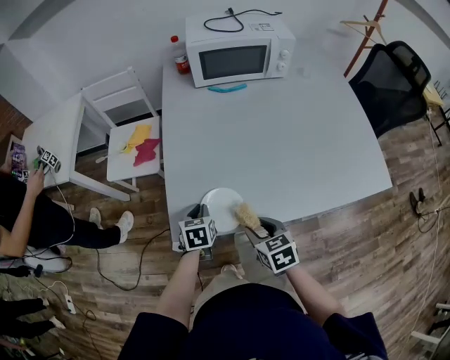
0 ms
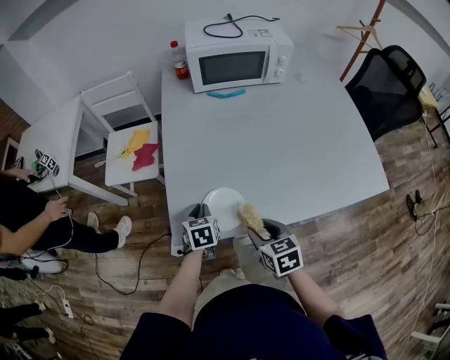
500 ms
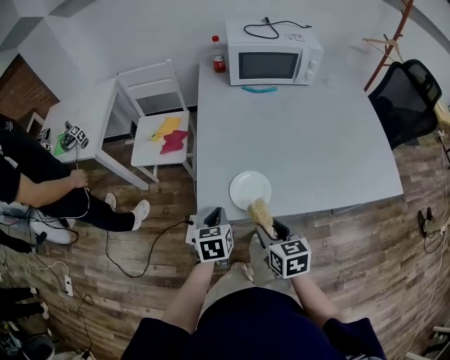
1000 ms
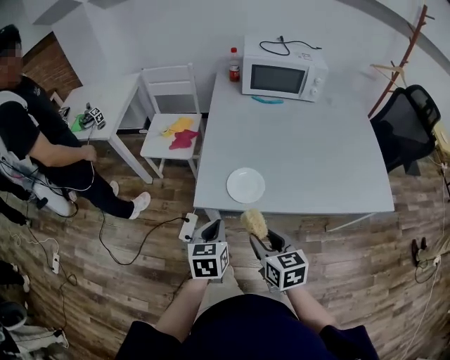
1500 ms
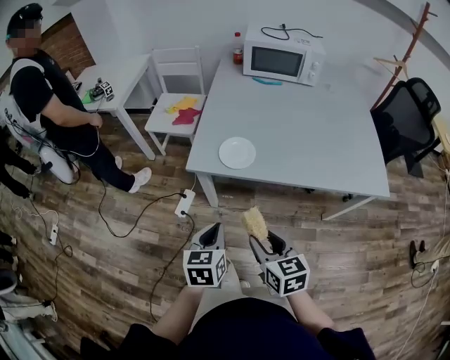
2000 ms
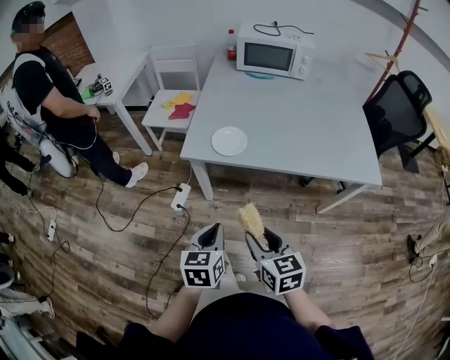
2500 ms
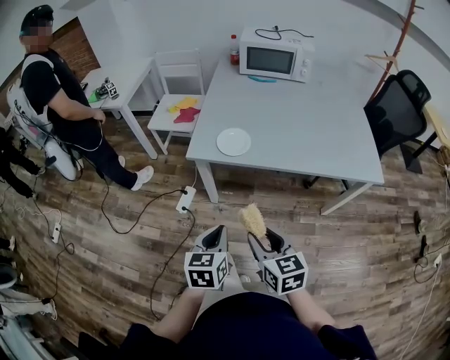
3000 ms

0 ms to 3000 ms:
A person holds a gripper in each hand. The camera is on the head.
0 ms to 1500 ms: The right gripper heads backward, upward and to the left, covering about 15 cm. Meanwhile the left gripper moves backward and upward, about 20 cm.
1500 ms to 3000 ms: Both grippers move backward, roughly 20 cm.

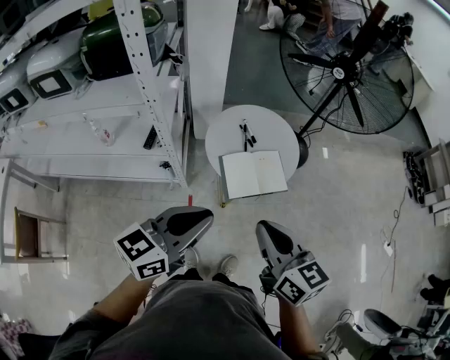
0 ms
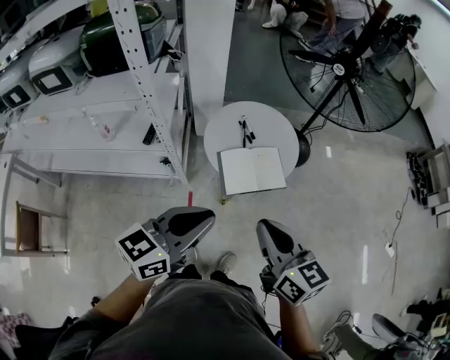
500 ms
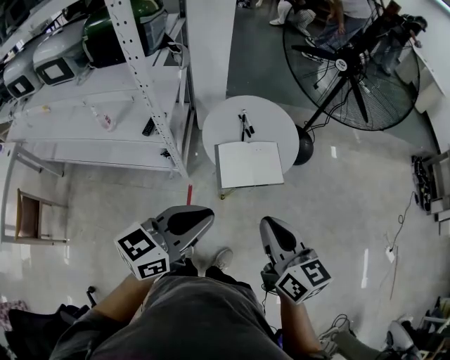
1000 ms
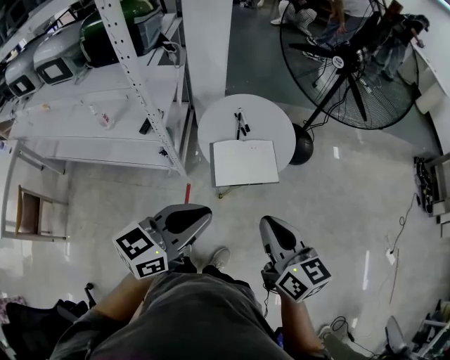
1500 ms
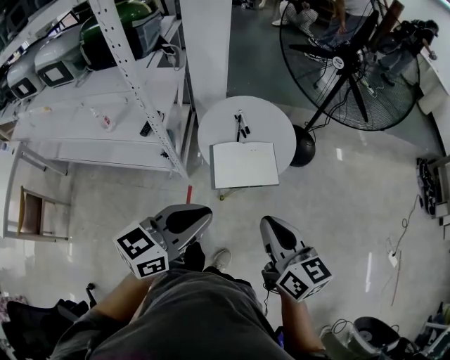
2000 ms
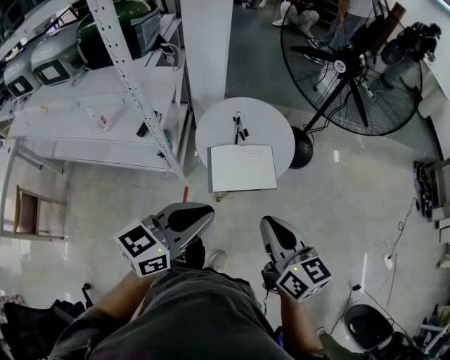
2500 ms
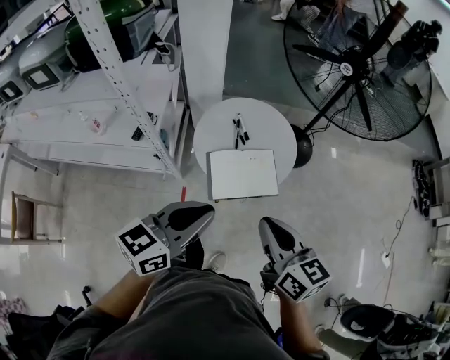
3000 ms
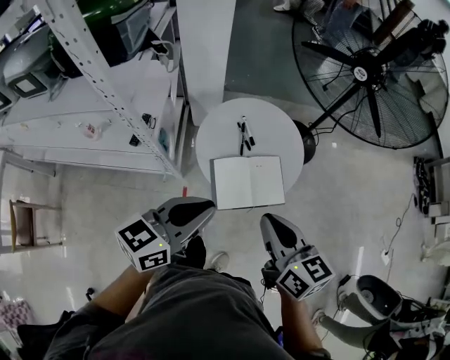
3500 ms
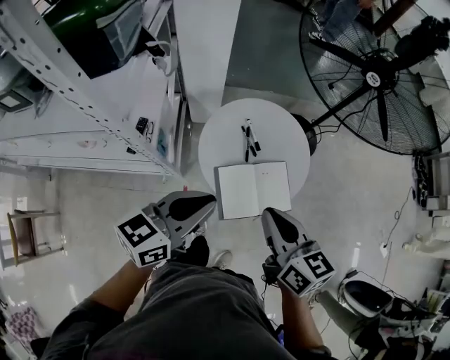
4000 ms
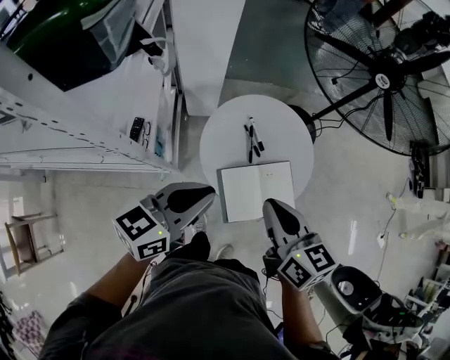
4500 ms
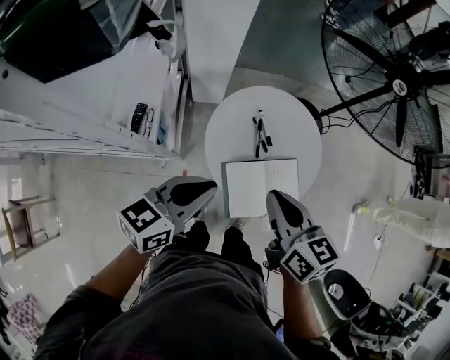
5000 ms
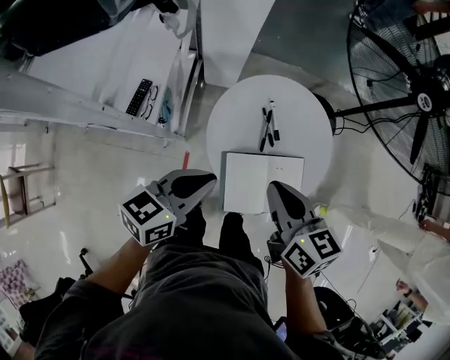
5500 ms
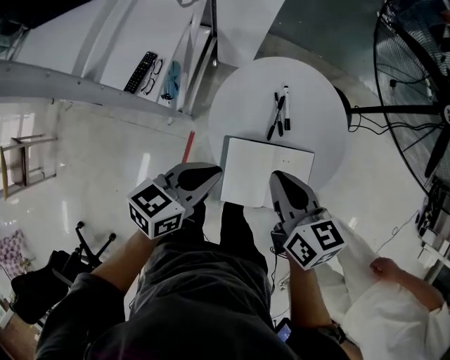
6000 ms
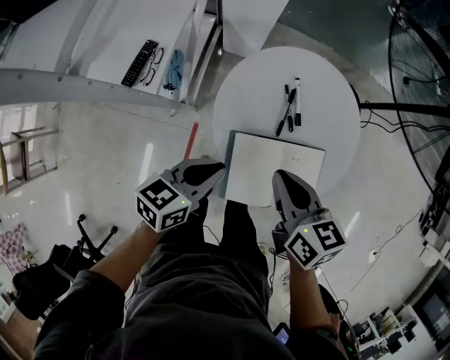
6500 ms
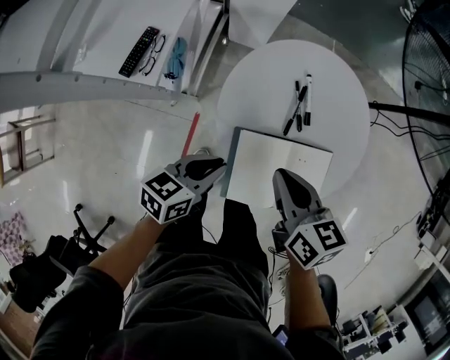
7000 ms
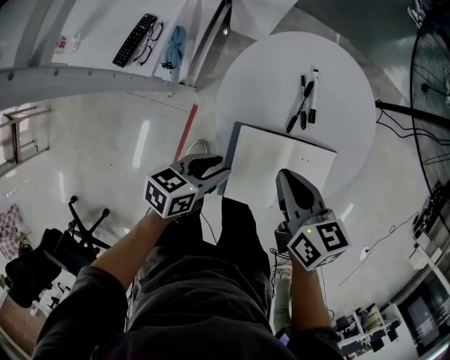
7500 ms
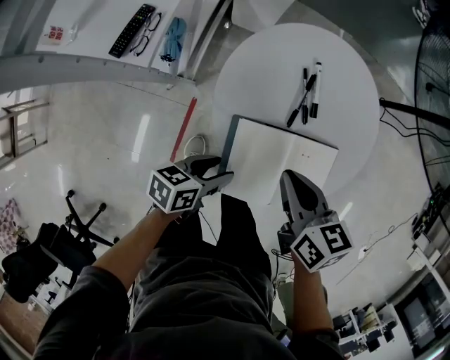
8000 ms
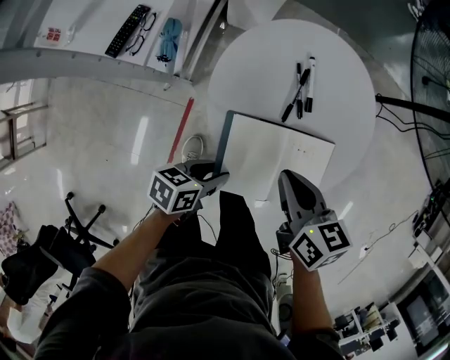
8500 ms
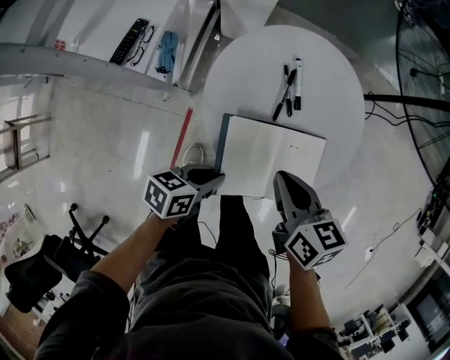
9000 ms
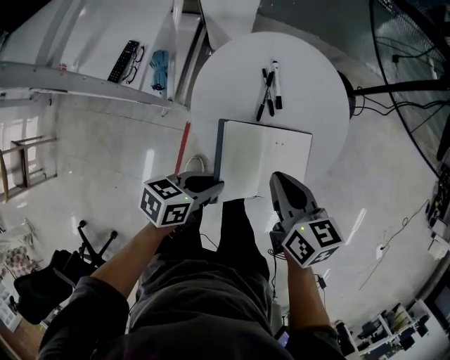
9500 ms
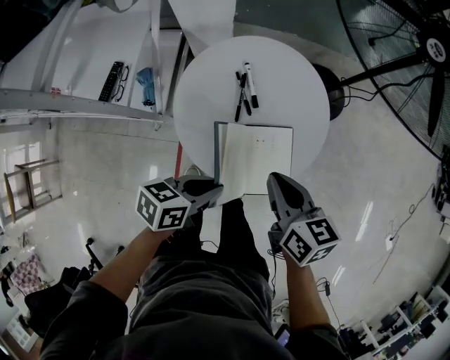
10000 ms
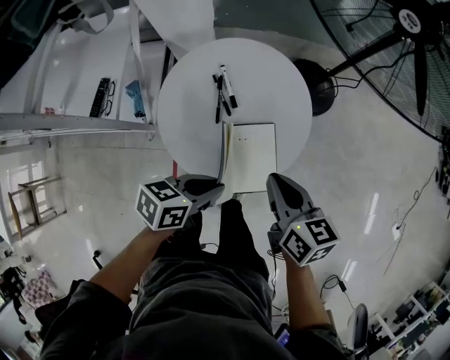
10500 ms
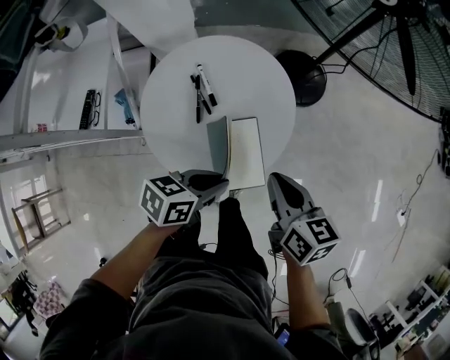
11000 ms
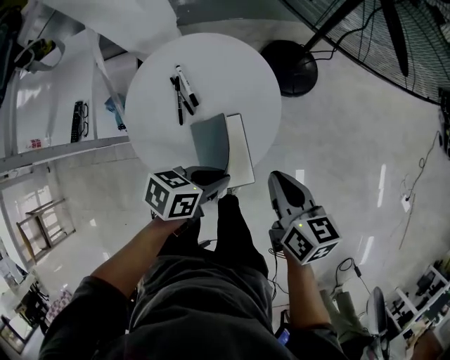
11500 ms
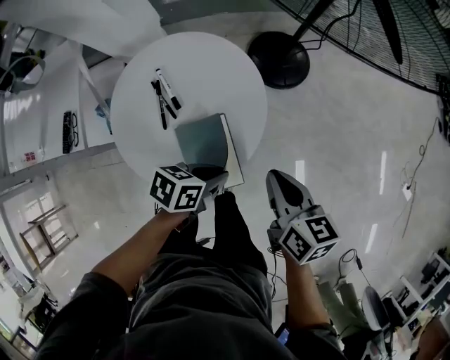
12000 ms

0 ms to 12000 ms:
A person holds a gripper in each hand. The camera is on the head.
0 ms to 2000 ms: Both grippers move to the right, some 10 cm.
2000 ms to 4000 ms: The grippers both shift forward and to the left by roughly 25 cm.
4000 ms to 6000 ms: The left gripper heads downward, covering about 20 cm, and turns by approximately 20 degrees; the right gripper moves downward and forward, roughly 20 cm.
6000 ms to 8000 ms: The right gripper goes roughly 10 cm downward. The left gripper goes about 20 cm downward, rotates roughly 20 degrees, and opens.
8000 ms to 10000 ms: The left gripper is displaced upward and to the right by approximately 15 cm, and closes up. The right gripper goes roughly 10 cm to the right and upward.
10000 ms to 12000 ms: The left gripper moves to the right and forward, approximately 20 cm. Meanwhile the right gripper goes roughly 20 cm to the right.

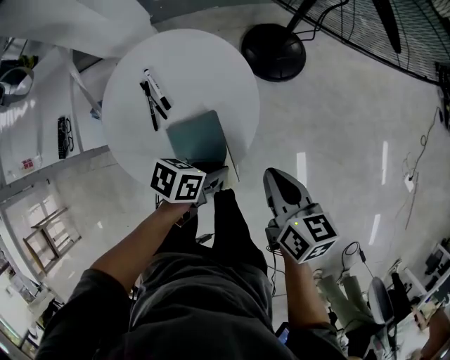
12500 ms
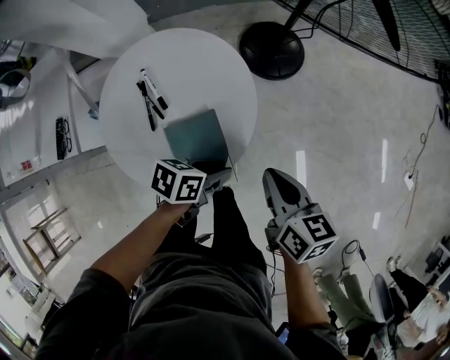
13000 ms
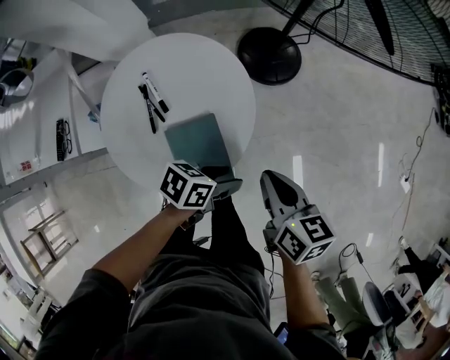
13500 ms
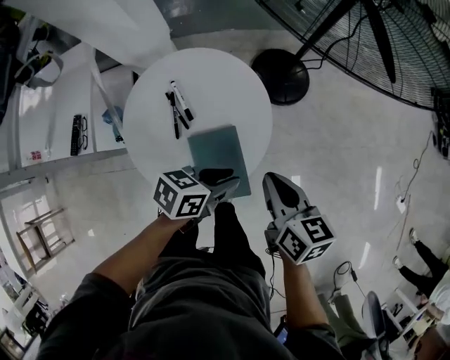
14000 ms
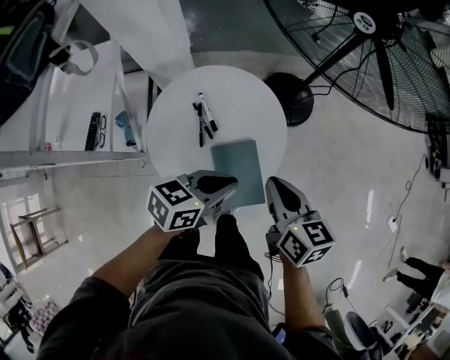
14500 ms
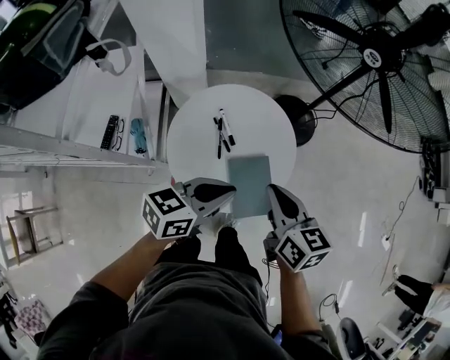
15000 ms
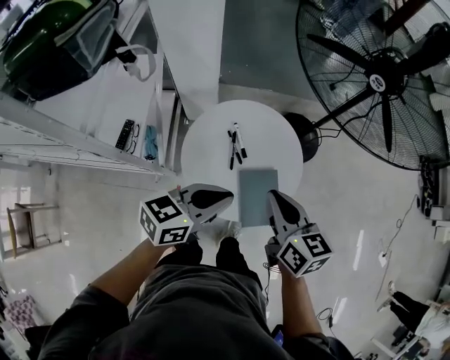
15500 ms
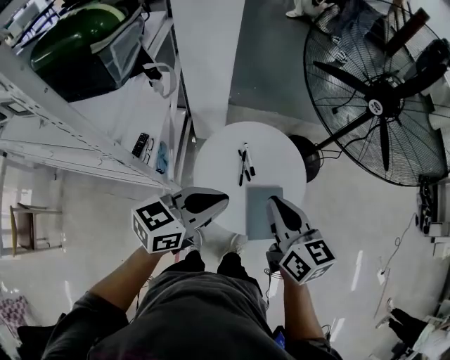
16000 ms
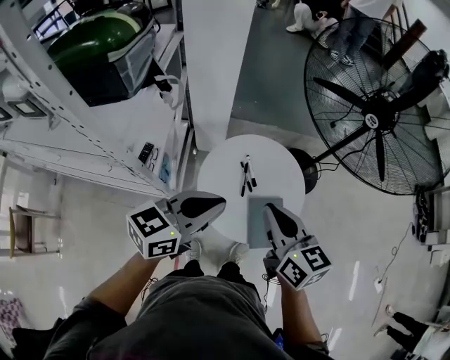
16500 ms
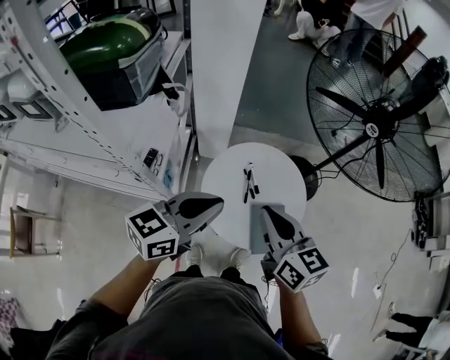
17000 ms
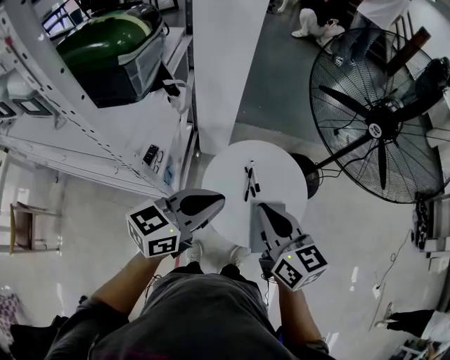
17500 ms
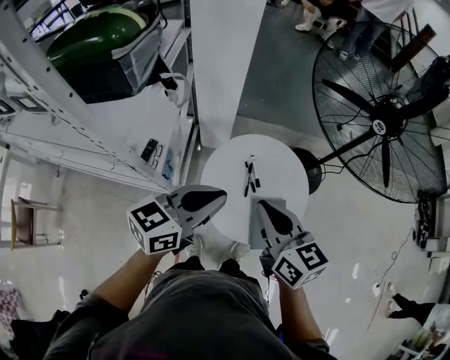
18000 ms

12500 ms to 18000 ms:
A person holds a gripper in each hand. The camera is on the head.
12500 ms to 14500 ms: The left gripper moves upward and to the left, some 20 cm, turns by approximately 30 degrees, and opens and closes again, while the right gripper travels to the left and upward by about 15 cm.
14500 ms to 16000 ms: Both grippers move to the left and upward, roughly 20 cm. The left gripper swivels about 20 degrees.
16000 ms to 18000 ms: The left gripper shifts by about 5 cm. Meanwhile the right gripper travels to the left by roughly 5 cm.

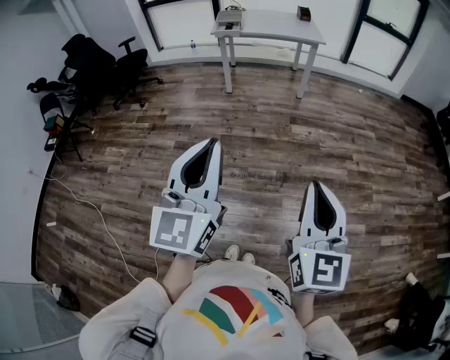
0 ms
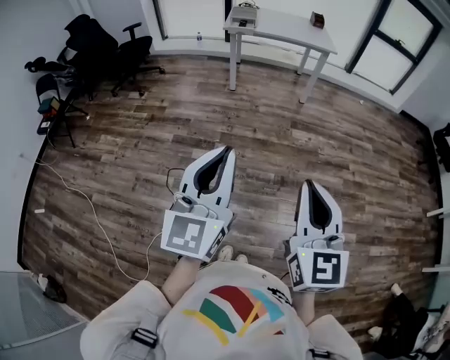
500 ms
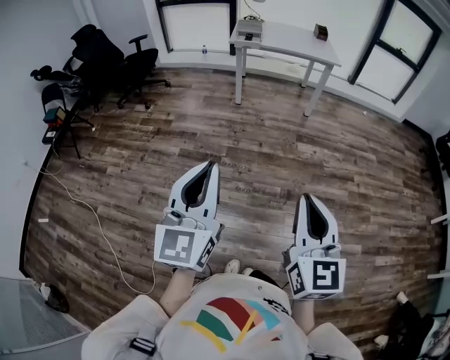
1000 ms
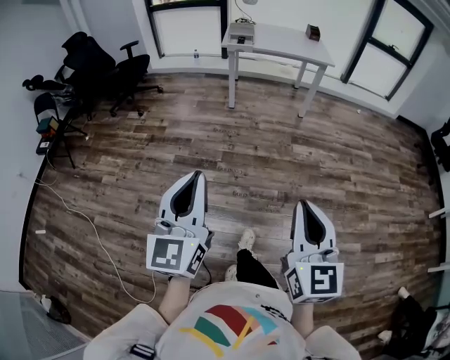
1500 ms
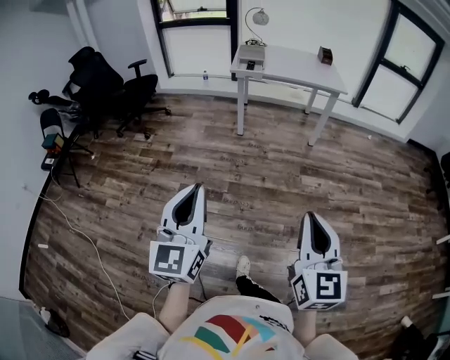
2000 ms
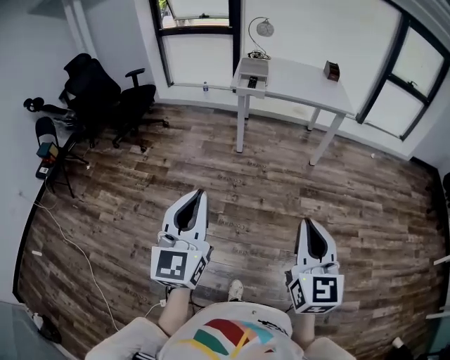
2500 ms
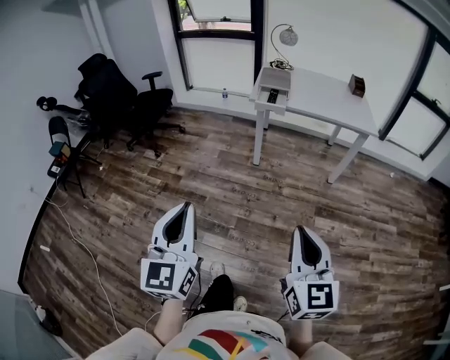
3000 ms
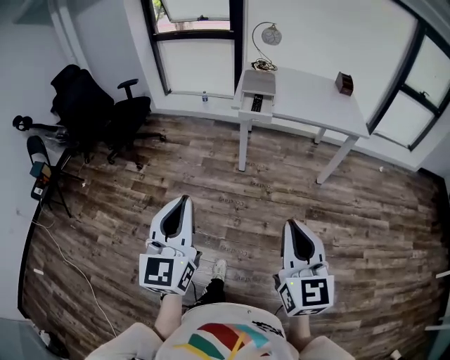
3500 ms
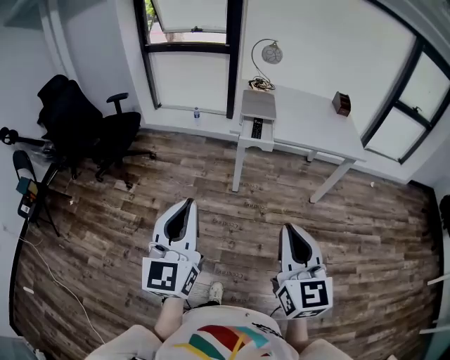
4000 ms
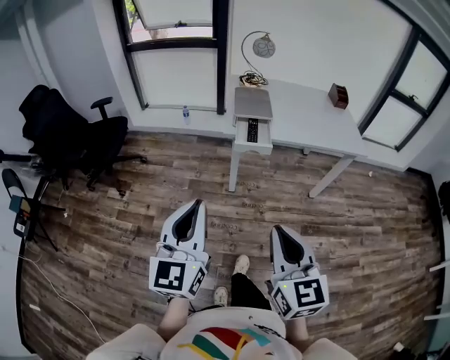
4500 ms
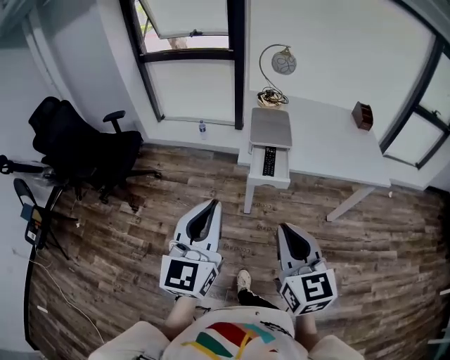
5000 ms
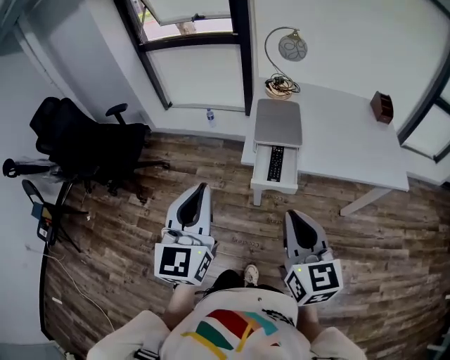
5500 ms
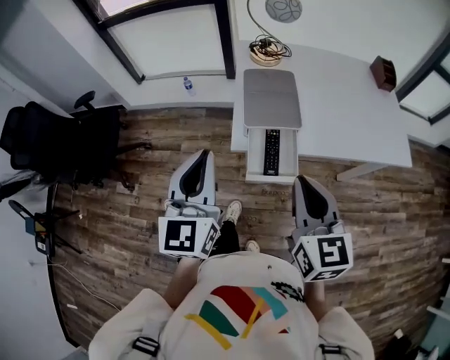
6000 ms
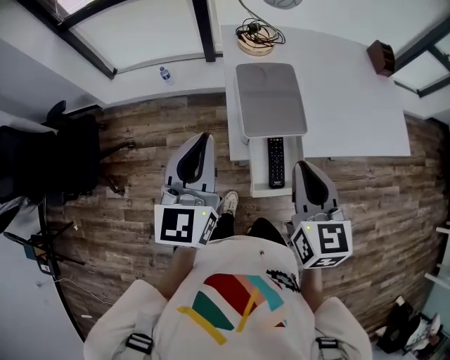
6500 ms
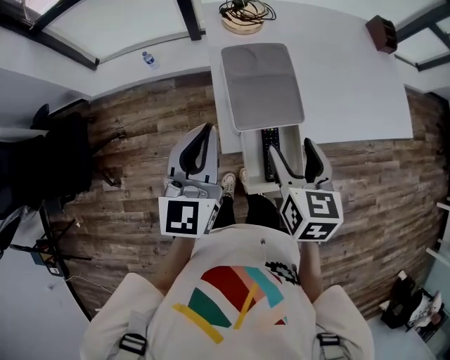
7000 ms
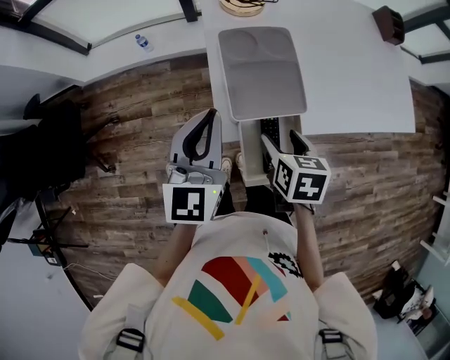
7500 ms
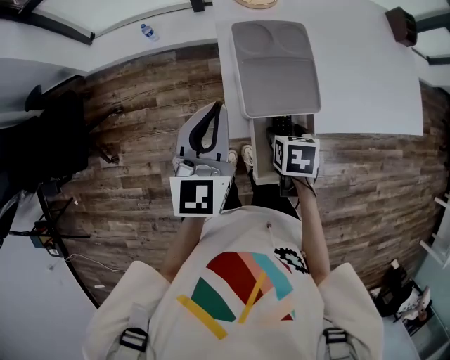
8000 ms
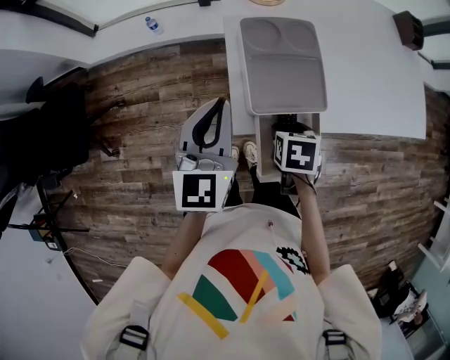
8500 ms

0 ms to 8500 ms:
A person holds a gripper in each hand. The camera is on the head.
0 ms to 2000 ms: Both grippers move forward and to the left, about 25 cm.
2000 ms to 4000 ms: The two grippers travel together, forward, roughly 50 cm.
4000 ms to 6500 ms: The two grippers travel together, forward, approximately 60 cm. The right gripper turns by roughly 20 degrees.
6500 ms to 8500 ms: The right gripper travels downward by about 25 cm, tips its fingers downward by approximately 50 degrees, and opens its fingers. Meanwhile the left gripper is displaced downward and forward by some 10 cm.
